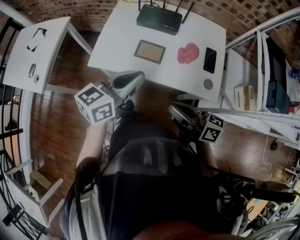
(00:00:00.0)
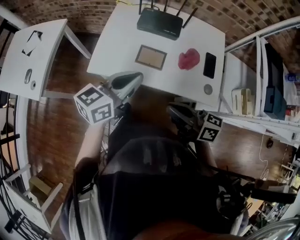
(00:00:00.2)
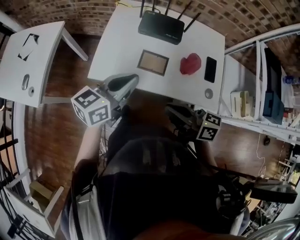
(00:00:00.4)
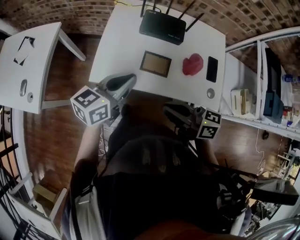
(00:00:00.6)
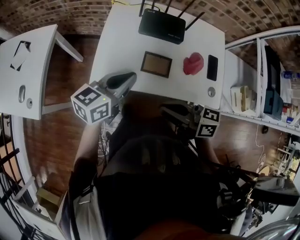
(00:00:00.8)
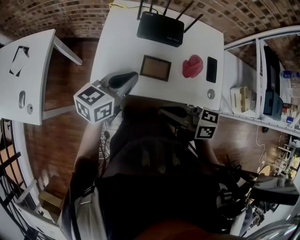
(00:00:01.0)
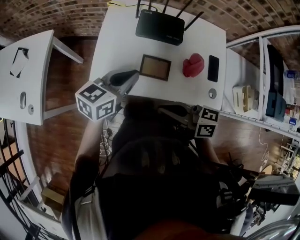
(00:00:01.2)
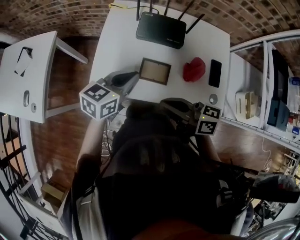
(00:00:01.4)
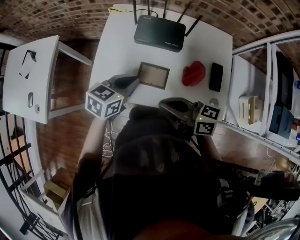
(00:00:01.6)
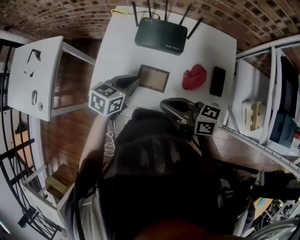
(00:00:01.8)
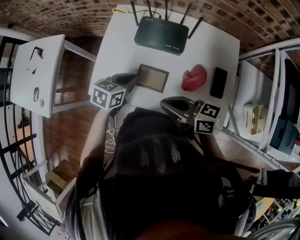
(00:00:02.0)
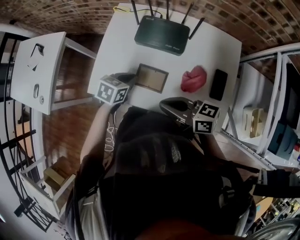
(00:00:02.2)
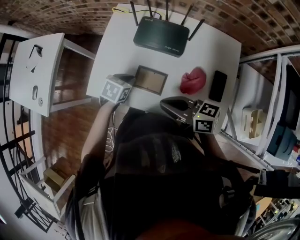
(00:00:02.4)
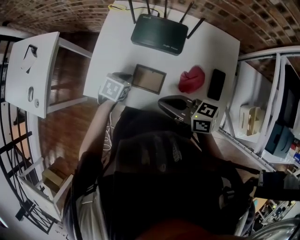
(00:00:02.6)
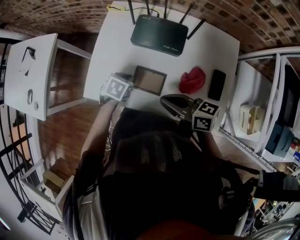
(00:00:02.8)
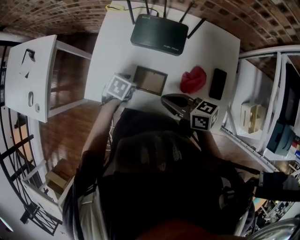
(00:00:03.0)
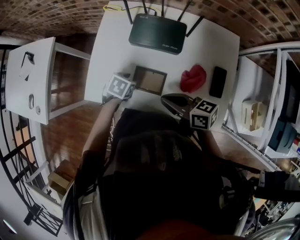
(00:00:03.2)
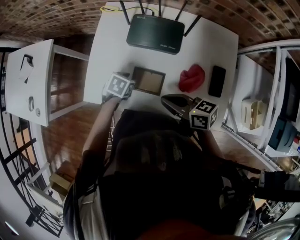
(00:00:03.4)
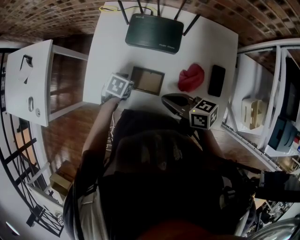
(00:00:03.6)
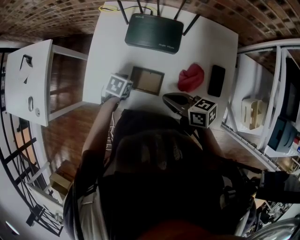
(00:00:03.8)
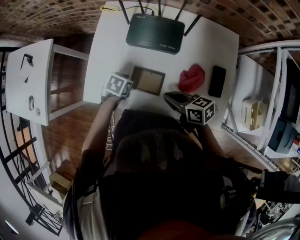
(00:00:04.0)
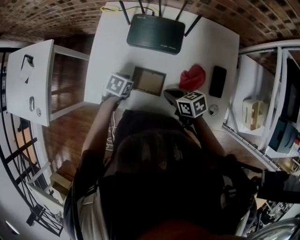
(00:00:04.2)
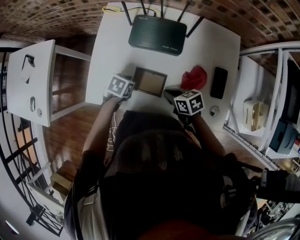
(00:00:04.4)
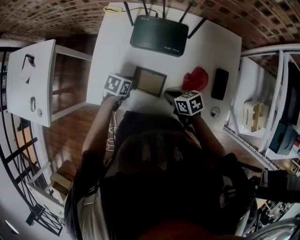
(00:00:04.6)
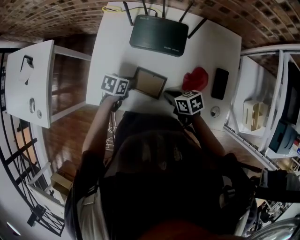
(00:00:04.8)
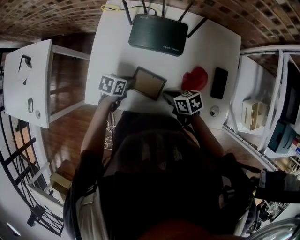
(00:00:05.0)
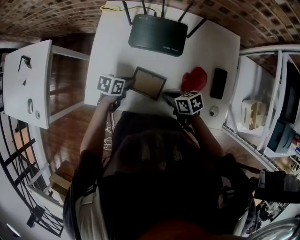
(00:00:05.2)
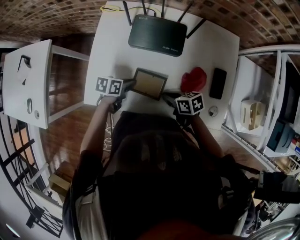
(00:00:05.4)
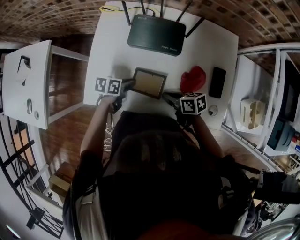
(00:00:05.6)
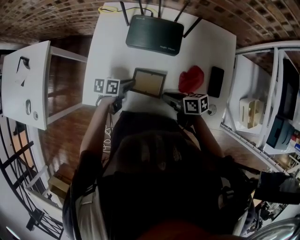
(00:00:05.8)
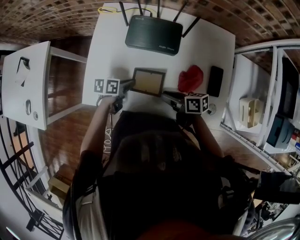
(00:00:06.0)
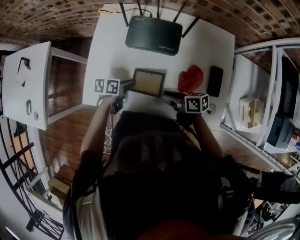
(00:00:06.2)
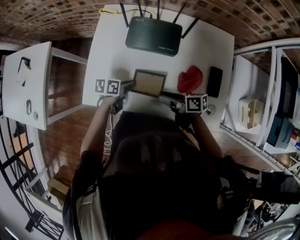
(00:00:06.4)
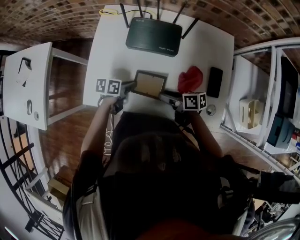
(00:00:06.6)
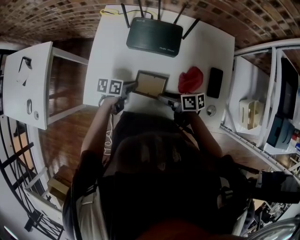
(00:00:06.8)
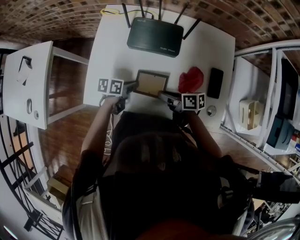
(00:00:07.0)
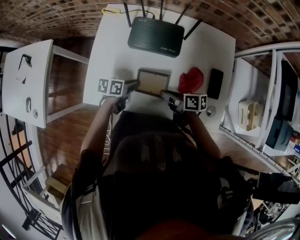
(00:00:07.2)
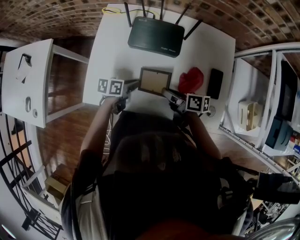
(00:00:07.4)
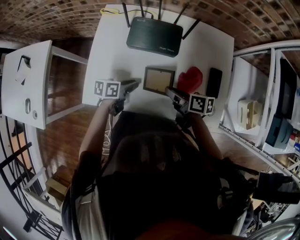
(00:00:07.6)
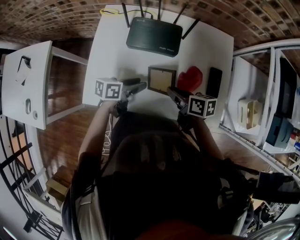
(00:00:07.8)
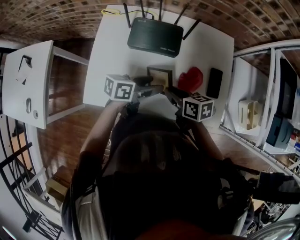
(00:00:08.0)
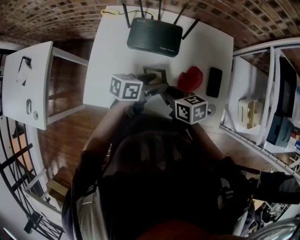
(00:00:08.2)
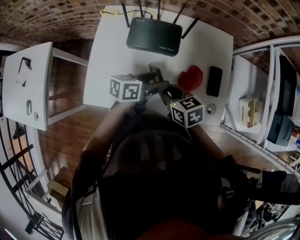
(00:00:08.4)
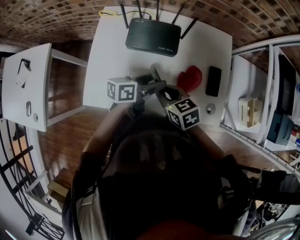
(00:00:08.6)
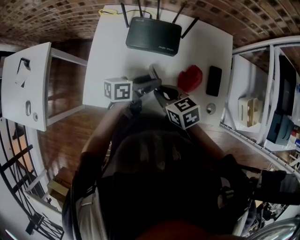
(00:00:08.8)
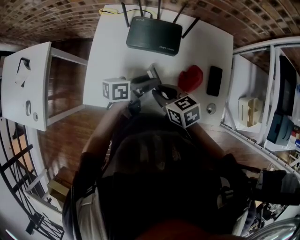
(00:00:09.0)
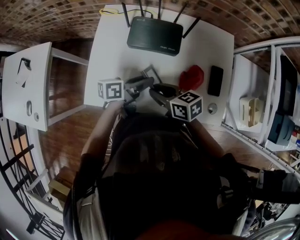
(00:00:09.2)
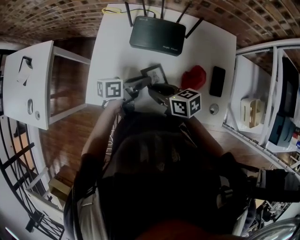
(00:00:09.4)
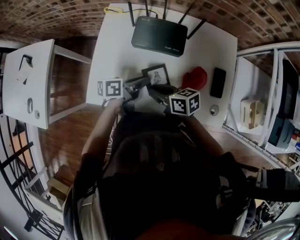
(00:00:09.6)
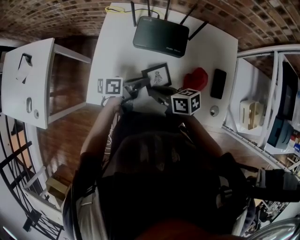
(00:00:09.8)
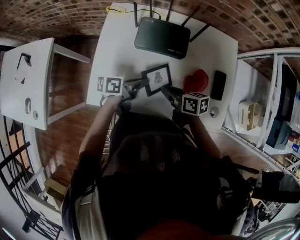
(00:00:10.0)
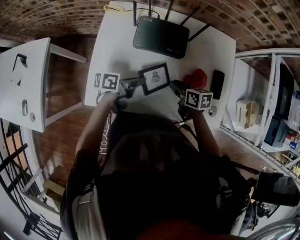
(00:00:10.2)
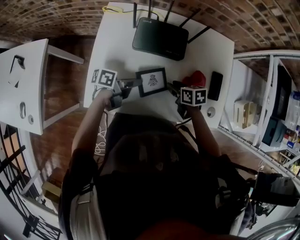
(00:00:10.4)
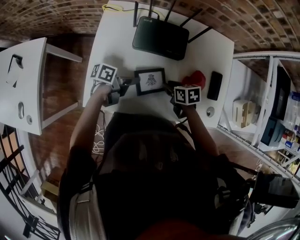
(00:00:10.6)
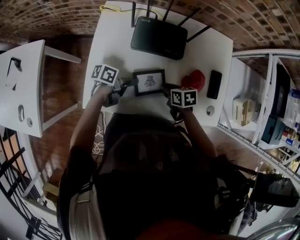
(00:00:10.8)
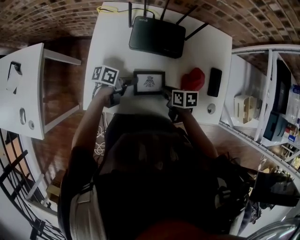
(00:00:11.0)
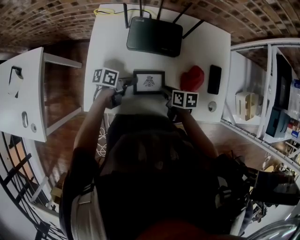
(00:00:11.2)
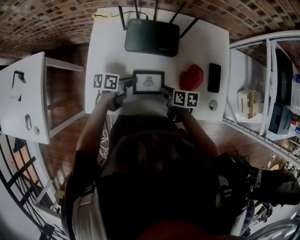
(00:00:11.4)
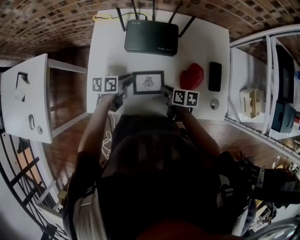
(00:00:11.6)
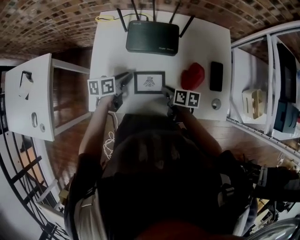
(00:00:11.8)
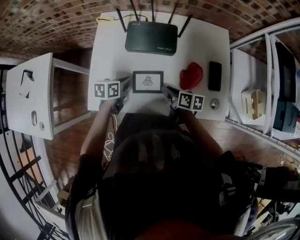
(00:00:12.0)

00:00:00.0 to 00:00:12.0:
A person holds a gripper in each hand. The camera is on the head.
00:00:00.0 to 00:00:01.6: The left gripper goes roughly 20 cm forward and downward, and changes its angle by approximately 30 degrees. The right gripper is displaced forward by some 15 cm.
00:00:01.6 to 00:00:03.0: The right gripper ends up some 10 cm from where it was, while the left gripper travels downward by some 15 cm, angles its fingers downward, by about 30 degrees, and opens up.
00:00:03.0 to 00:00:04.4: The right gripper is displaced downward by approximately 15 cm, and turns by approximately 30 degrees.
00:00:04.4 to 00:00:06.0: The left gripper changes its angle by roughly 30 degrees. The right gripper changes its angle by roughly 30 degrees, and opens up.
00:00:06.0 to 00:00:07.6: The right gripper opens, then closes again.
00:00:07.6 to 00:00:09.0: The left gripper travels upward and to the right by approximately 10 cm, and opens. The right gripper moves to the left, about 5 cm, and rotates some 40 degrees.
00:00:09.0 to 00:00:10.4: The right gripper travels downward by about 10 cm, and swivels roughly 20 degrees, while the left gripper ends up some 10 cm from where it was, turns by some 20 degrees, and closes up.
00:00:10.4 to 00:00:12.0: The right gripper rotates approximately 30 degrees. Meanwhile the left gripper rotates about 40 degrees.

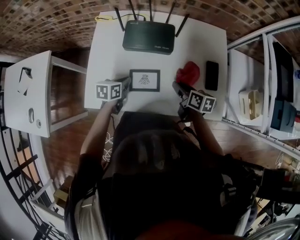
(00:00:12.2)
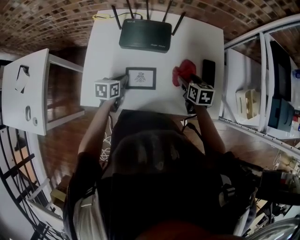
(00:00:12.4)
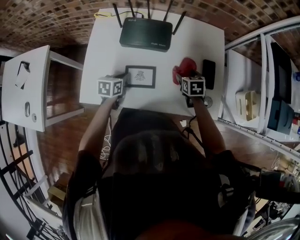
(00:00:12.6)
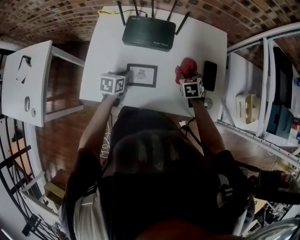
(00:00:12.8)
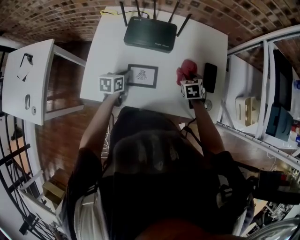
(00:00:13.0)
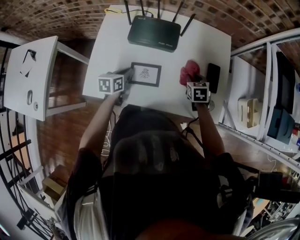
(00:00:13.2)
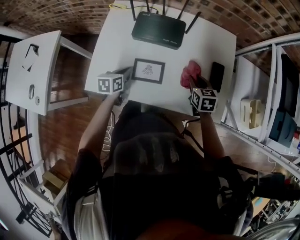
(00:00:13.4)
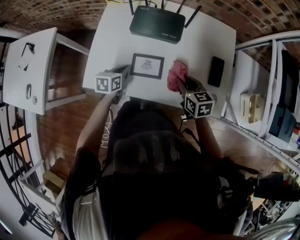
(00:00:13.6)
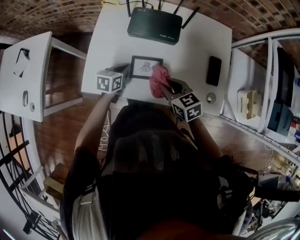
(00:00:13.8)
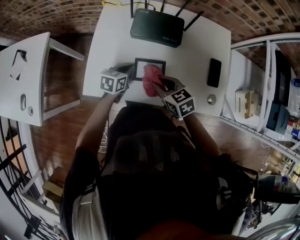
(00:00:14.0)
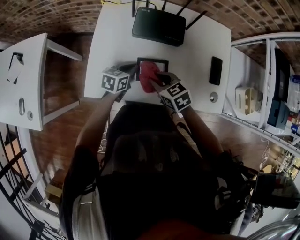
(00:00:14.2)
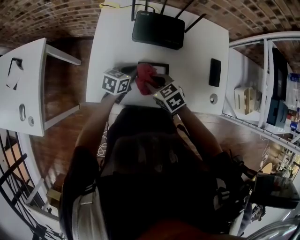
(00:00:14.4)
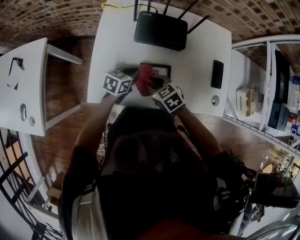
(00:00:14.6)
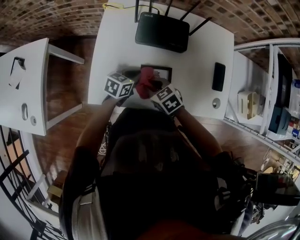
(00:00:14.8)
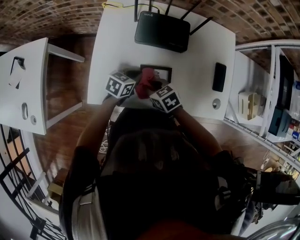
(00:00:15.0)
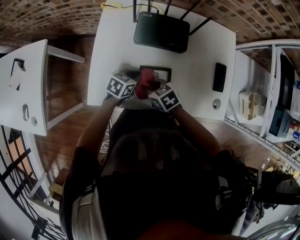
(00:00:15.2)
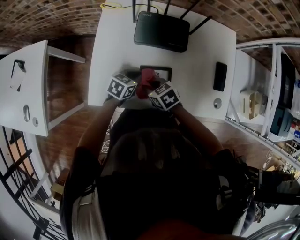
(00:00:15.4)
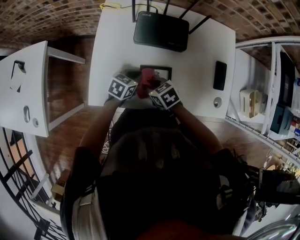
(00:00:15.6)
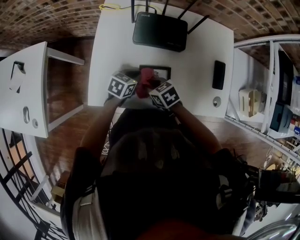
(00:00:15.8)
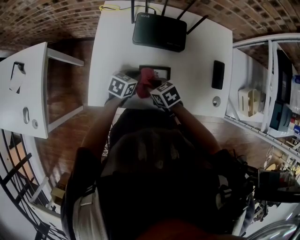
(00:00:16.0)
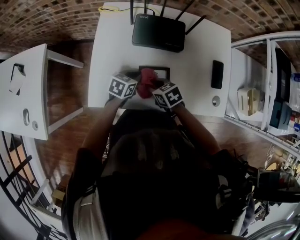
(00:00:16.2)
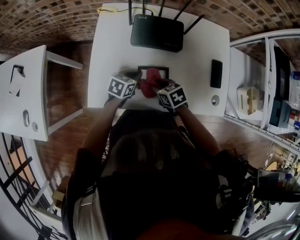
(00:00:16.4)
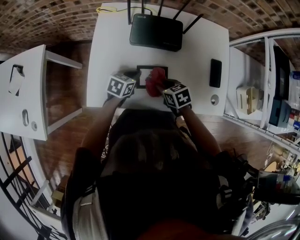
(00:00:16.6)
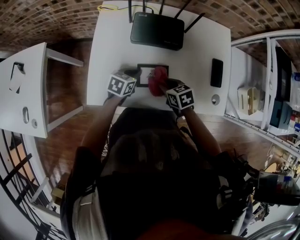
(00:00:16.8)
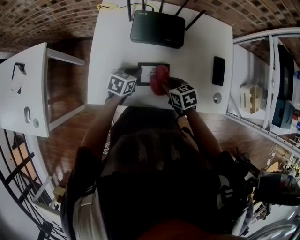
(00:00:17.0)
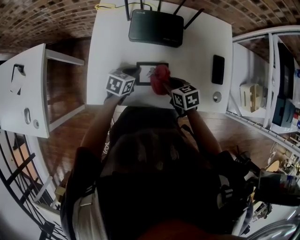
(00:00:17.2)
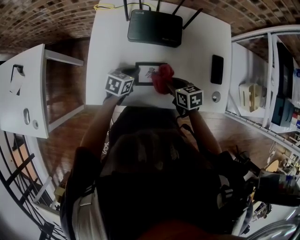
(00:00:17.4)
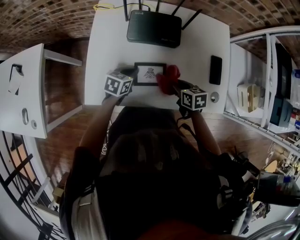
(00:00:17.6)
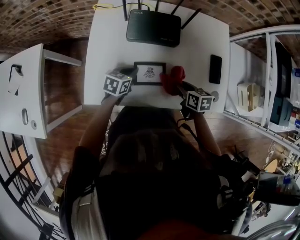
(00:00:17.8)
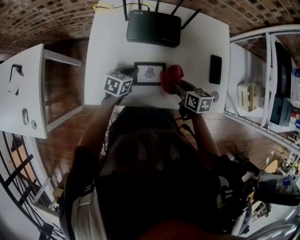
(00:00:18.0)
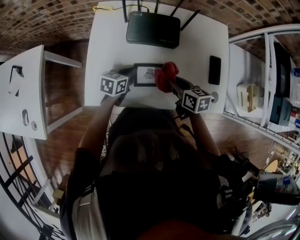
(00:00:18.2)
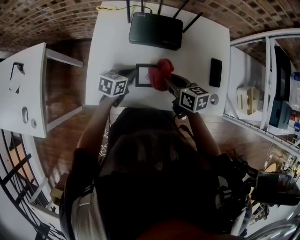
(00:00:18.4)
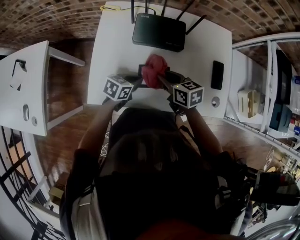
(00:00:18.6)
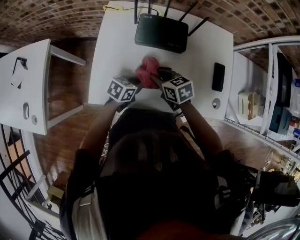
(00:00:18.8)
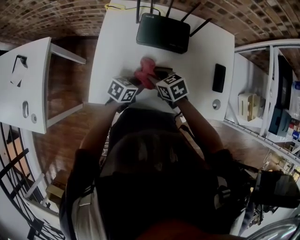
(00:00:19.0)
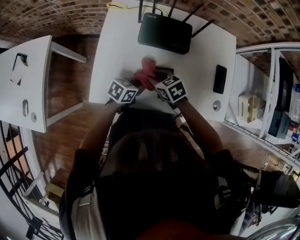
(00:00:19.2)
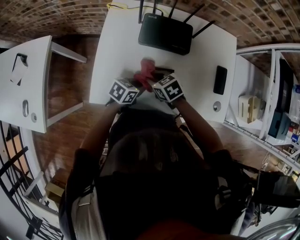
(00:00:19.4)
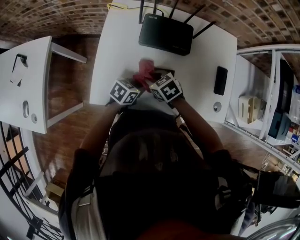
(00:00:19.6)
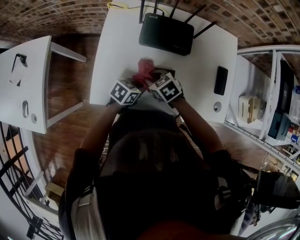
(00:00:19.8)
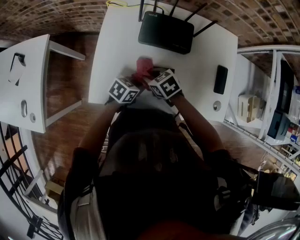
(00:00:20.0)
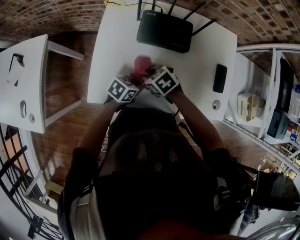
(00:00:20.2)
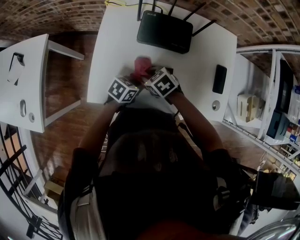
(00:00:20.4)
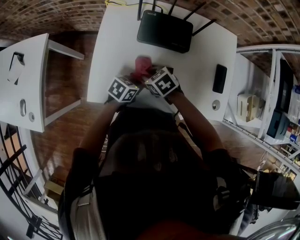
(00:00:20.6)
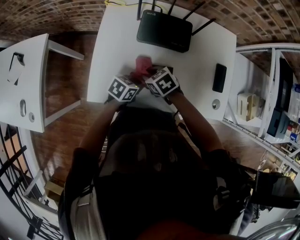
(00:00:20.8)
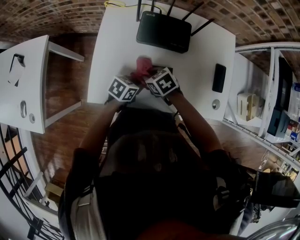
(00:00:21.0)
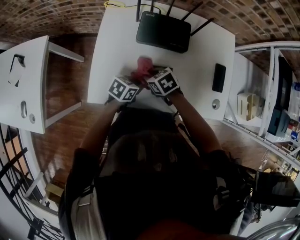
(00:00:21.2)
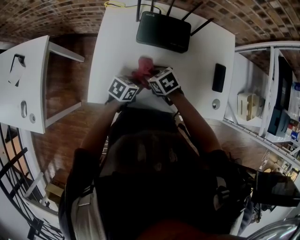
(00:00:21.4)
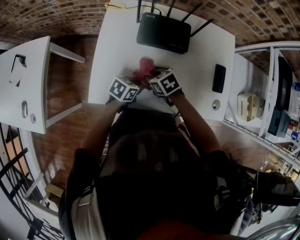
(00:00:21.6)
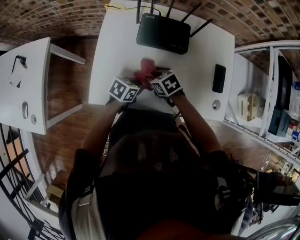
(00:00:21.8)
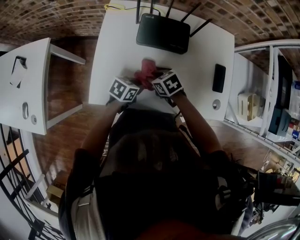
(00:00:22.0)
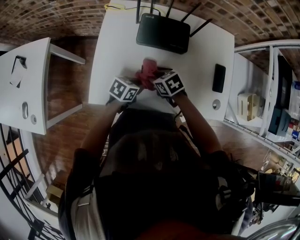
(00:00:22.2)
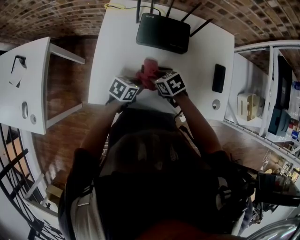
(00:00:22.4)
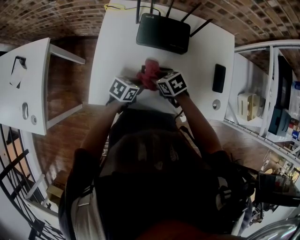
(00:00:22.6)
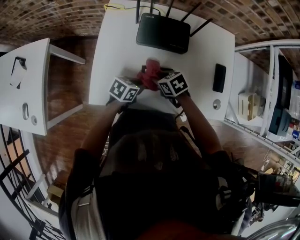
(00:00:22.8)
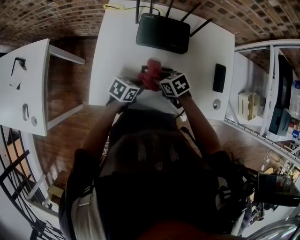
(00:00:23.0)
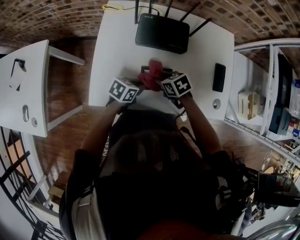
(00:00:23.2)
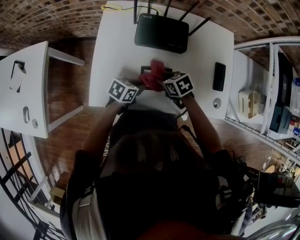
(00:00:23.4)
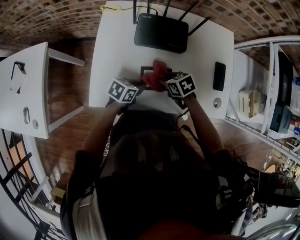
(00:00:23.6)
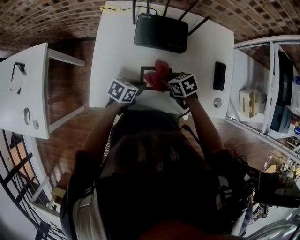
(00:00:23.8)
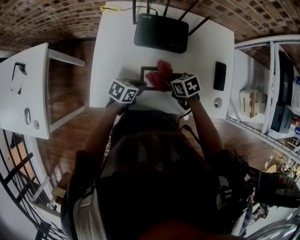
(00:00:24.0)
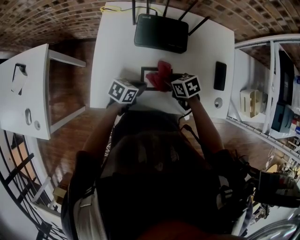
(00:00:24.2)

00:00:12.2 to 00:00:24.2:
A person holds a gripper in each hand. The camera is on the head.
00:00:12.2 to 00:00:13.8: The right gripper moves to the left and backward, approximately 10 cm, rotates approximately 40 degrees, and opens, then closes once more.
00:00:13.8 to 00:00:15.2: The right gripper changes place by about 15 cm, while the left gripper turns by roughly 20 degrees.
00:00:15.2 to 00:00:16.6: The right gripper ends up about 5 cm from where it was.
00:00:16.6 to 00:00:18.2: The right gripper moves to the right and upward, approximately 10 cm, and turns by some 30 degrees.
00:00:18.2 to 00:00:19.8: The left gripper moves about 5 cm. Meanwhile the right gripper moves some 15 cm, and turns by roughly 40 degrees.
00:00:19.8 to 00:00:22.6: The grippers move only a little.
00:00:22.6 to 00:00:24.2: The right gripper ends up some 5 cm from where it was.
